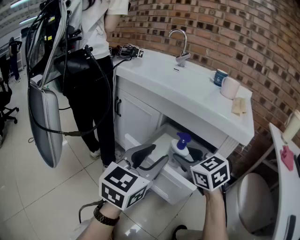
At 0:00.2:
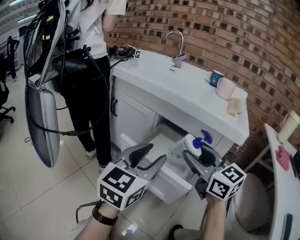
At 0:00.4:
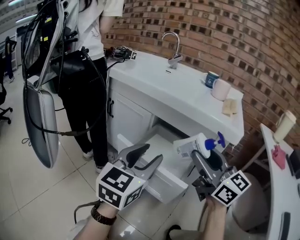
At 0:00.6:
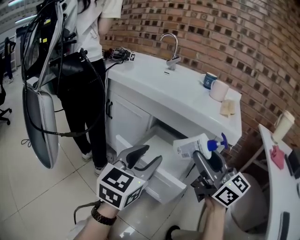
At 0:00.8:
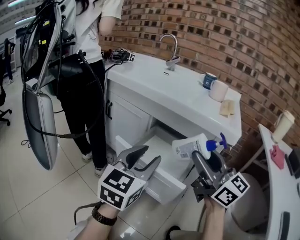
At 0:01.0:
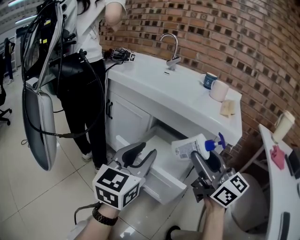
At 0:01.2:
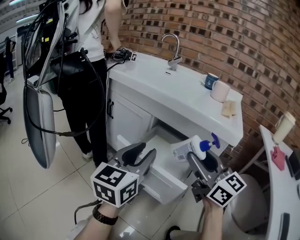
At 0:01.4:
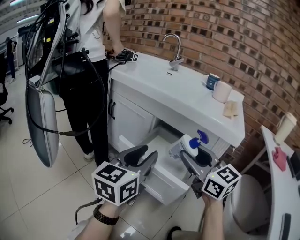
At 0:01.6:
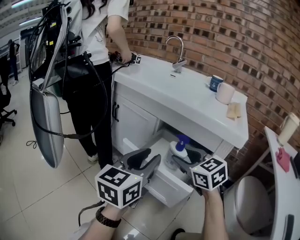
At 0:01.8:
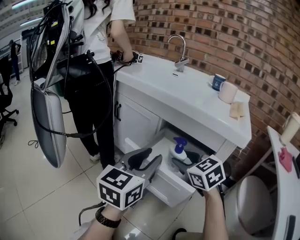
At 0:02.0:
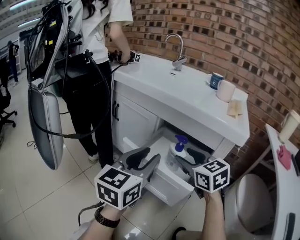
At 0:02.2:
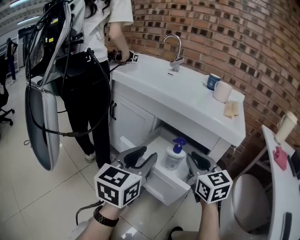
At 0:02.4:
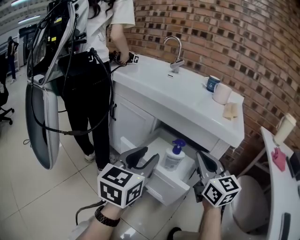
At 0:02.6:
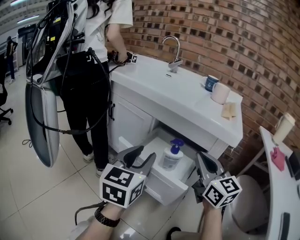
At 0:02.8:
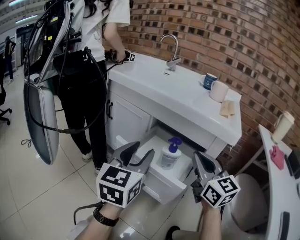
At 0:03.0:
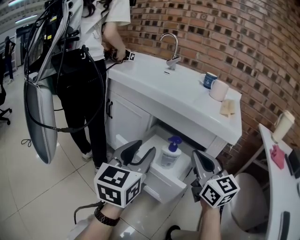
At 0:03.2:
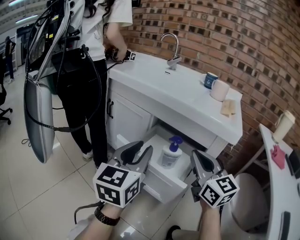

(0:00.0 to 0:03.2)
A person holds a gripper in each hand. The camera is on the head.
0:00.0 - 0:01.6: The right gripper goes upward and returns, approximately 10 cm each way.
0:01.6 - 0:03.2: The right gripper moves to the right and upward, roughly 10 cm, turns by roughly 30 degrees, and closes up.

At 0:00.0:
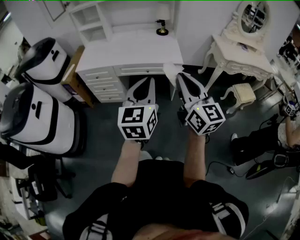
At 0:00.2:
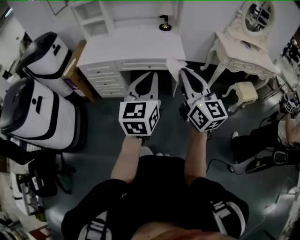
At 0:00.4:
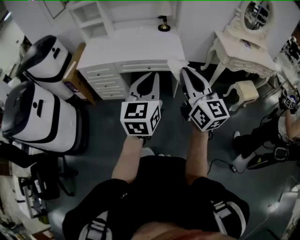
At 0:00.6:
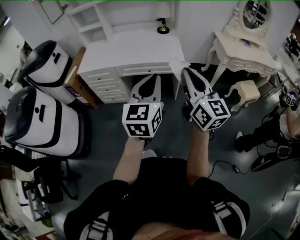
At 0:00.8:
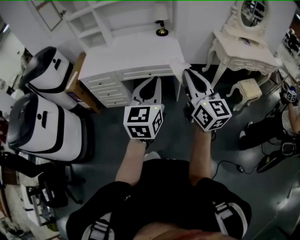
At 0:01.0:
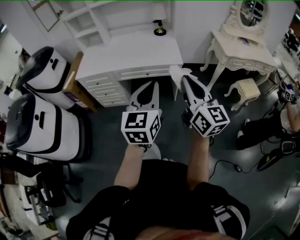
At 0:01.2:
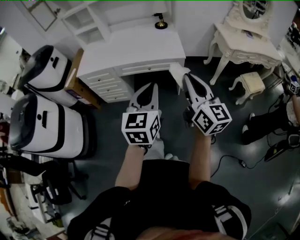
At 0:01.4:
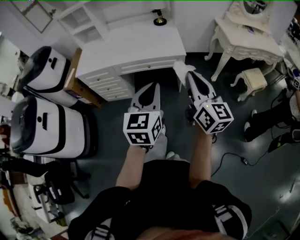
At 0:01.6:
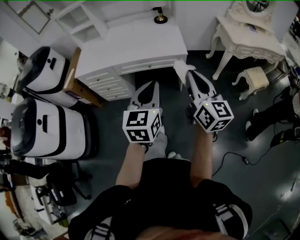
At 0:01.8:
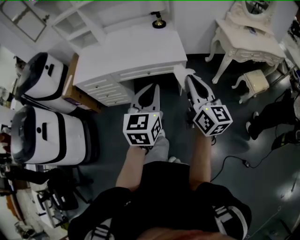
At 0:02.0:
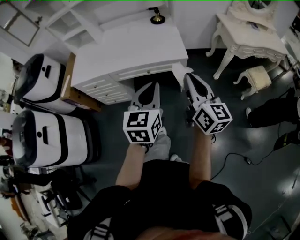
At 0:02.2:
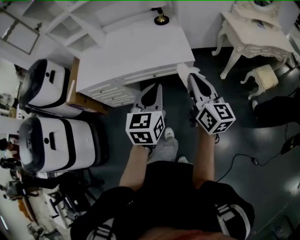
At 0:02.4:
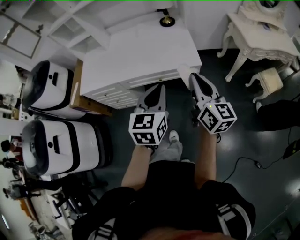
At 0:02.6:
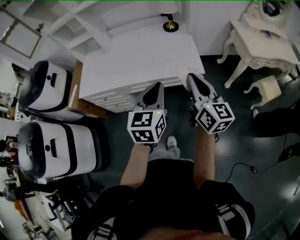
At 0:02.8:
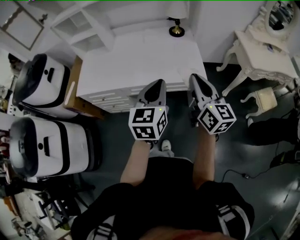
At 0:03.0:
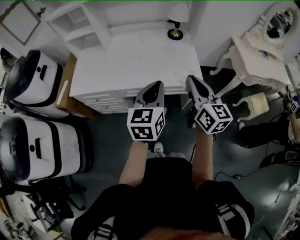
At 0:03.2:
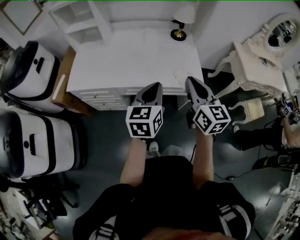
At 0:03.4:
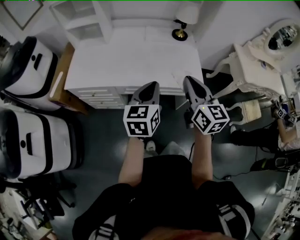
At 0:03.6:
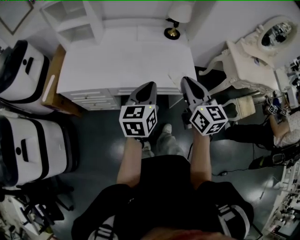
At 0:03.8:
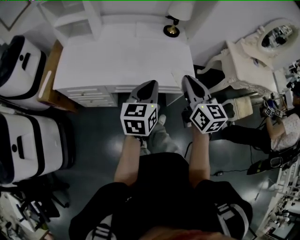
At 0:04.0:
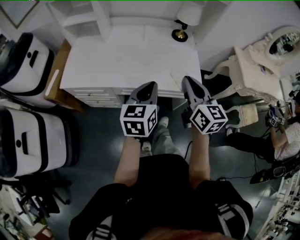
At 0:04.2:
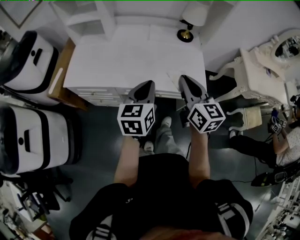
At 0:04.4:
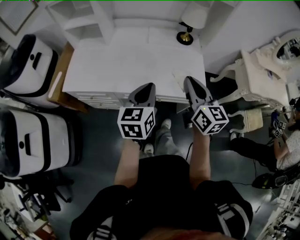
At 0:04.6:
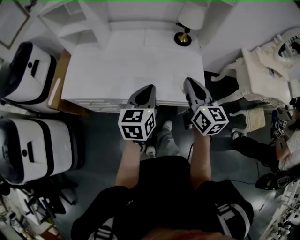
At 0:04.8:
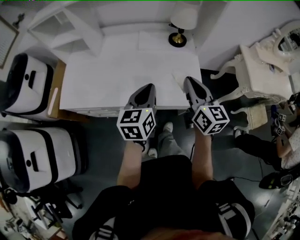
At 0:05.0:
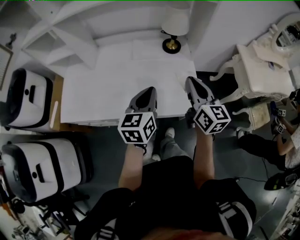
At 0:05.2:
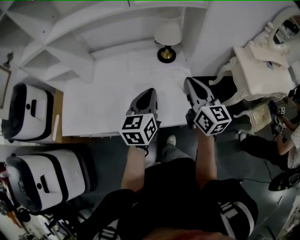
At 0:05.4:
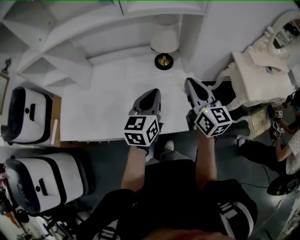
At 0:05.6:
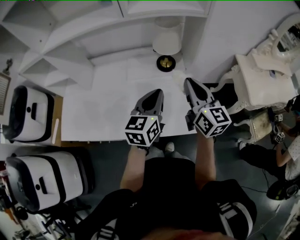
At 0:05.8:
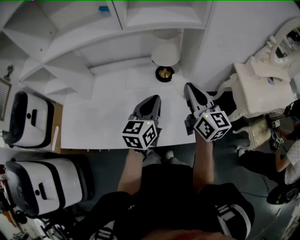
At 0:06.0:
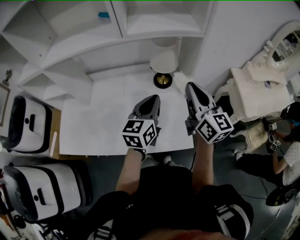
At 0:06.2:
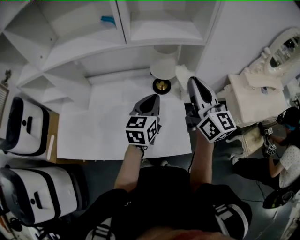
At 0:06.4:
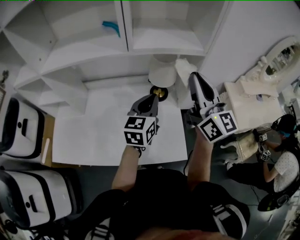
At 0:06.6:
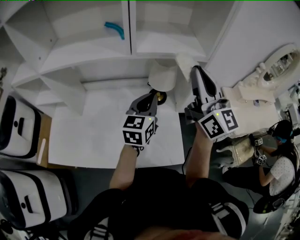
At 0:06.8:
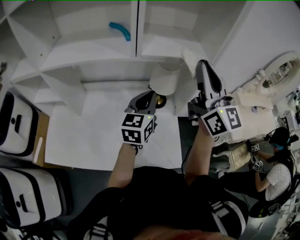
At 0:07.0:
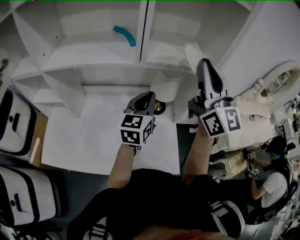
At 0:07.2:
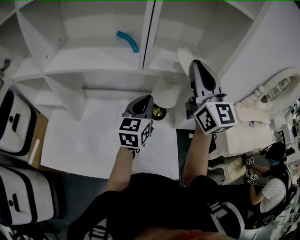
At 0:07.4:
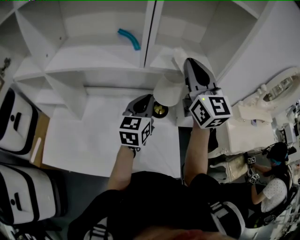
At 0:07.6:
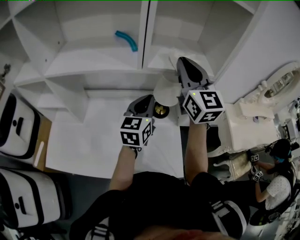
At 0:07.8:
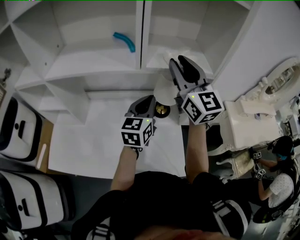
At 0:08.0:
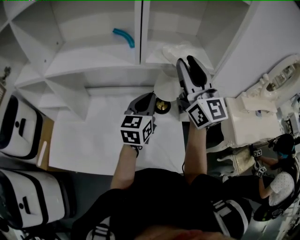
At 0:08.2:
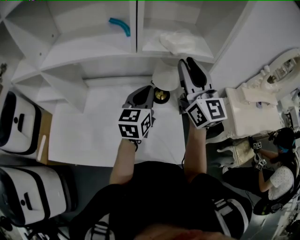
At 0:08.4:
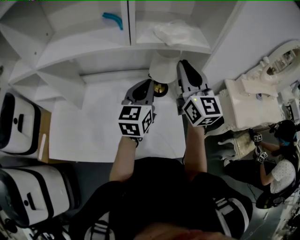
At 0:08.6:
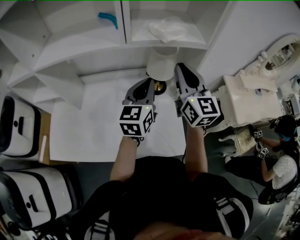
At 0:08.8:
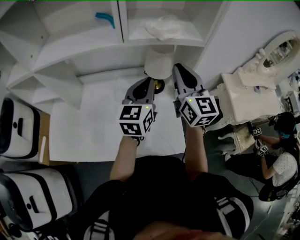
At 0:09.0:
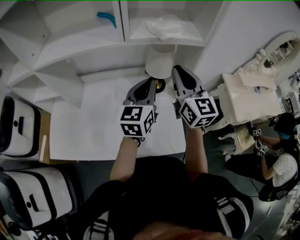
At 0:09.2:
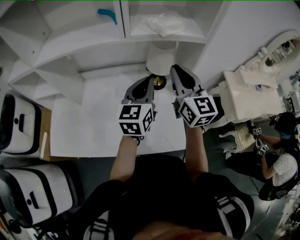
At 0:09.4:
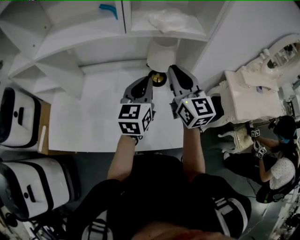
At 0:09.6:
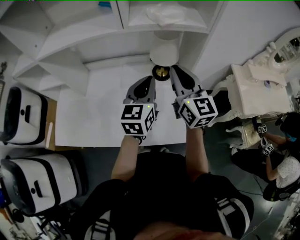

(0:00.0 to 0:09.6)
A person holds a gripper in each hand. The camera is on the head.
0:00.0 - 0:01.6: The left gripper shifts roughly 10 cm forward and downward; the right gripper goes some 15 cm forward, to the right and downward.
0:01.6 - 0:03.2: Both grippers travel together forward and to the left, approximately 35 cm.
0:03.2 - 0:04.8: The two grippers go approximately 15 cm forward.
0:04.8 - 0:06.4: The right gripper goes about 35 cm forward, upward and to the right, and turns by about 30 degrees; the left gripper is displaced forward and to the right by roughly 30 cm.
0:06.4 - 0:08.0: The left gripper heads forward, covering roughly 5 cm. Meanwhile the right gripper shifts some 10 cm forward and to the left, and opens its fingers.
0:08.0 - 0:09.6: The right gripper moves downward and backward, about 15 cm, swivels about 20 degrees, and closes its fingers; the left gripper goes about 5 cm backward.

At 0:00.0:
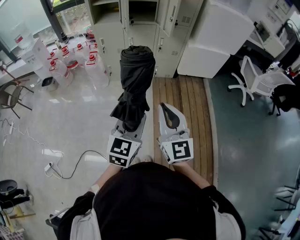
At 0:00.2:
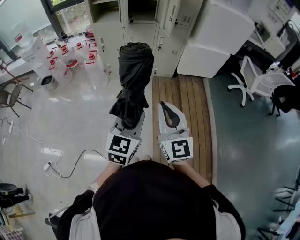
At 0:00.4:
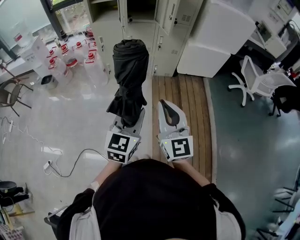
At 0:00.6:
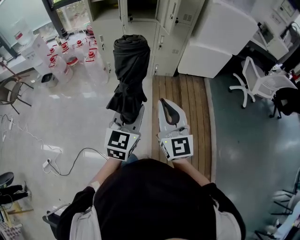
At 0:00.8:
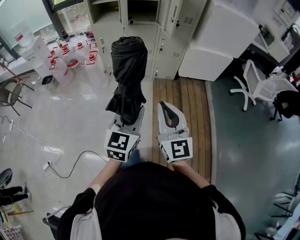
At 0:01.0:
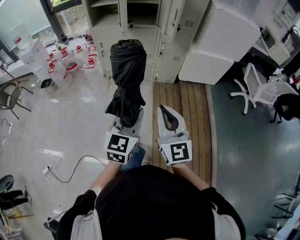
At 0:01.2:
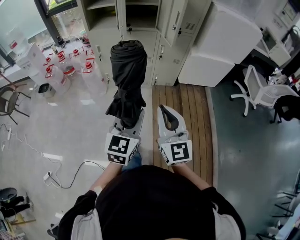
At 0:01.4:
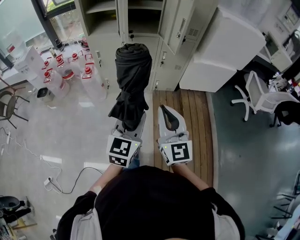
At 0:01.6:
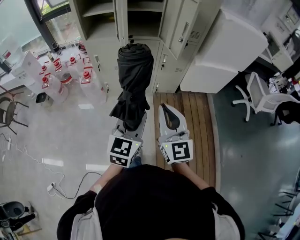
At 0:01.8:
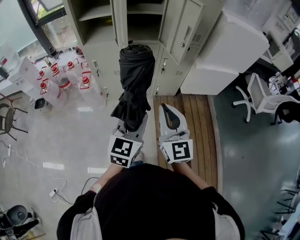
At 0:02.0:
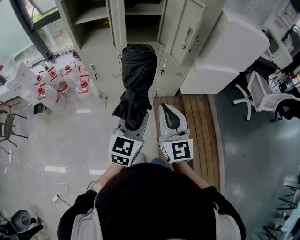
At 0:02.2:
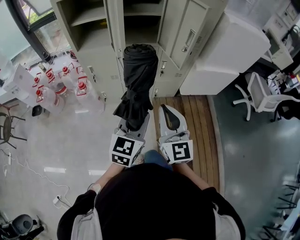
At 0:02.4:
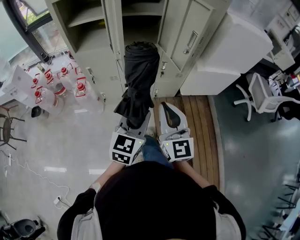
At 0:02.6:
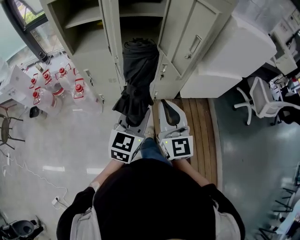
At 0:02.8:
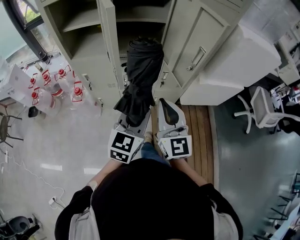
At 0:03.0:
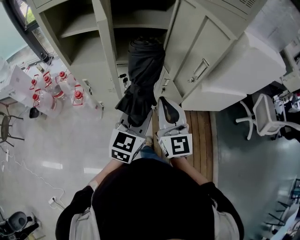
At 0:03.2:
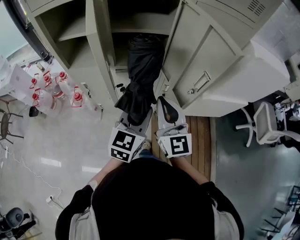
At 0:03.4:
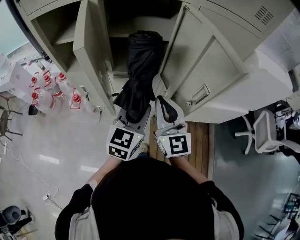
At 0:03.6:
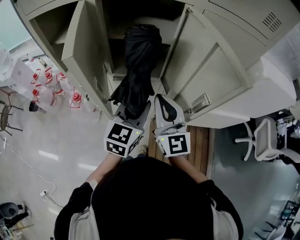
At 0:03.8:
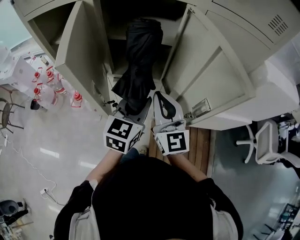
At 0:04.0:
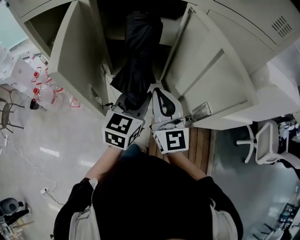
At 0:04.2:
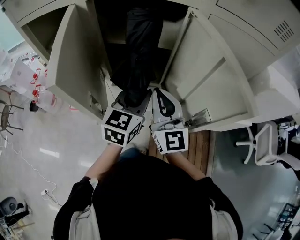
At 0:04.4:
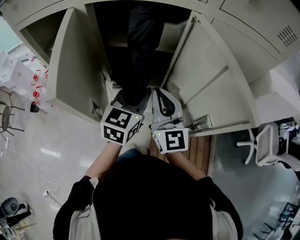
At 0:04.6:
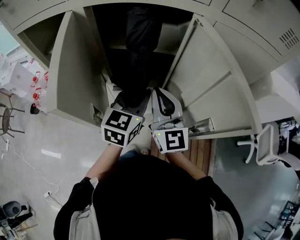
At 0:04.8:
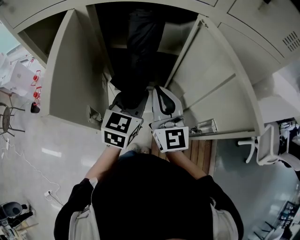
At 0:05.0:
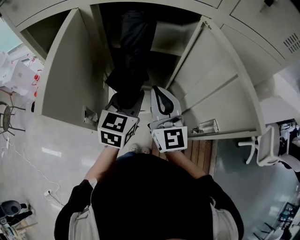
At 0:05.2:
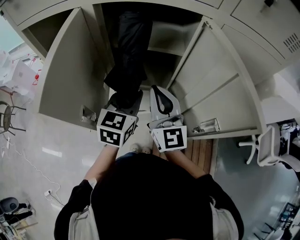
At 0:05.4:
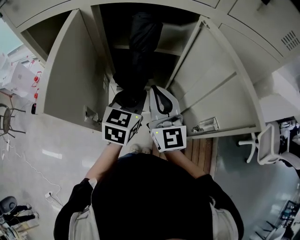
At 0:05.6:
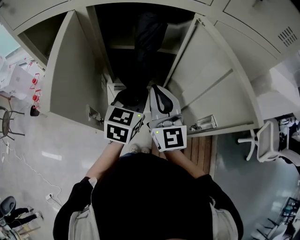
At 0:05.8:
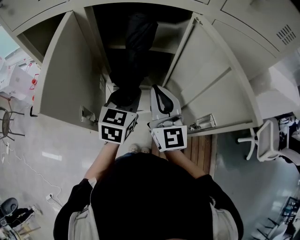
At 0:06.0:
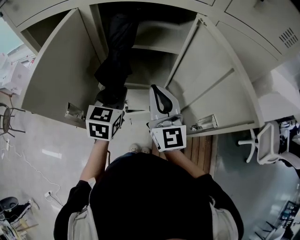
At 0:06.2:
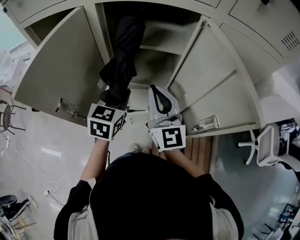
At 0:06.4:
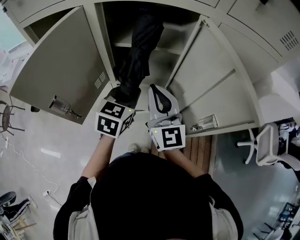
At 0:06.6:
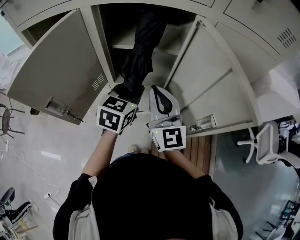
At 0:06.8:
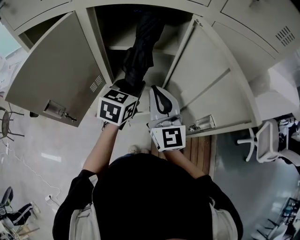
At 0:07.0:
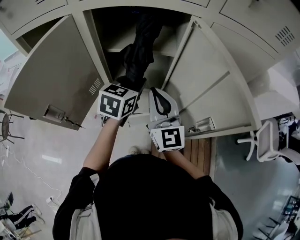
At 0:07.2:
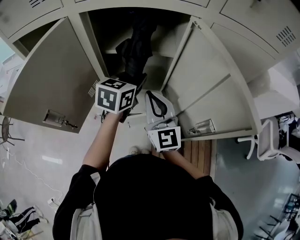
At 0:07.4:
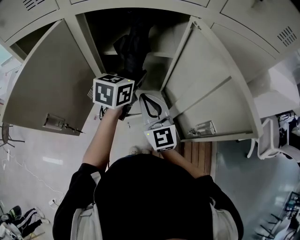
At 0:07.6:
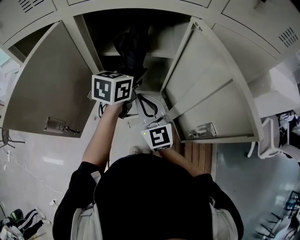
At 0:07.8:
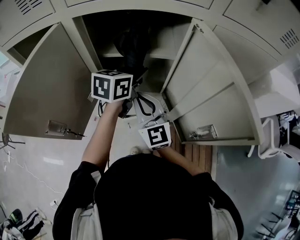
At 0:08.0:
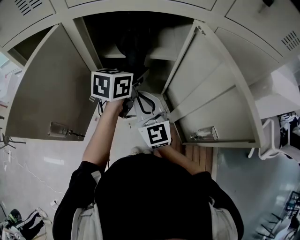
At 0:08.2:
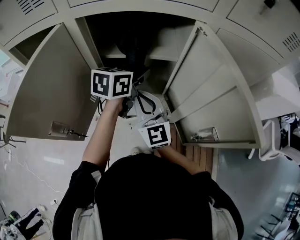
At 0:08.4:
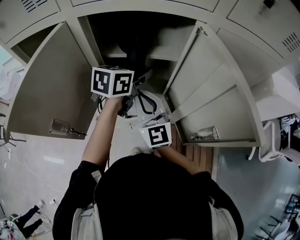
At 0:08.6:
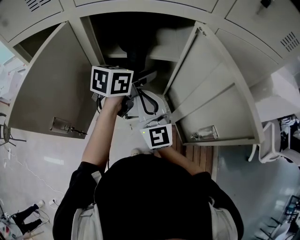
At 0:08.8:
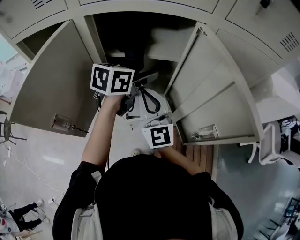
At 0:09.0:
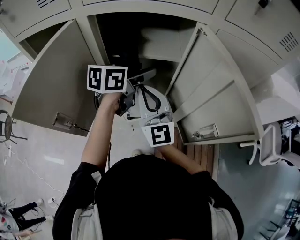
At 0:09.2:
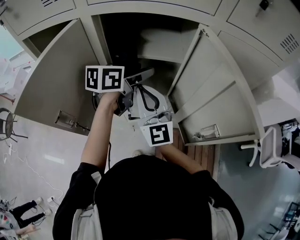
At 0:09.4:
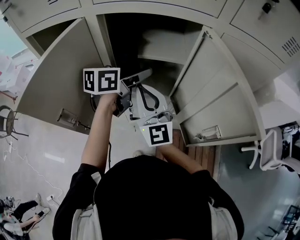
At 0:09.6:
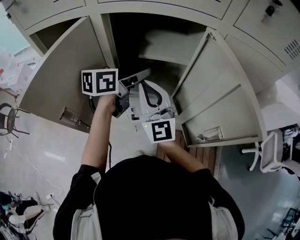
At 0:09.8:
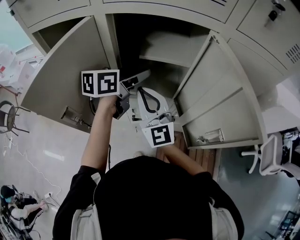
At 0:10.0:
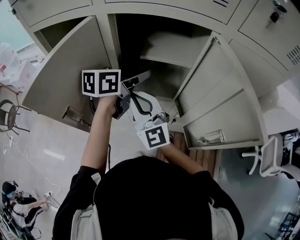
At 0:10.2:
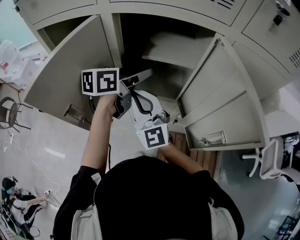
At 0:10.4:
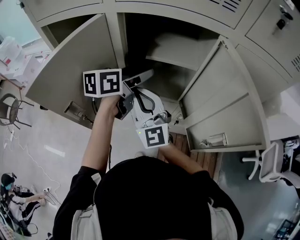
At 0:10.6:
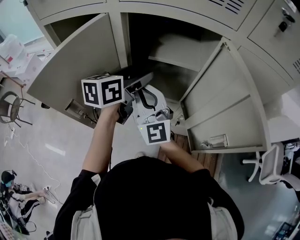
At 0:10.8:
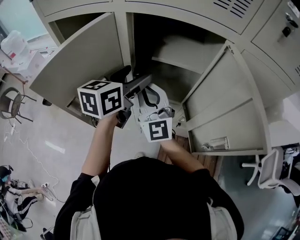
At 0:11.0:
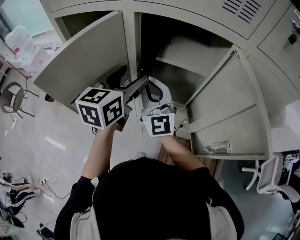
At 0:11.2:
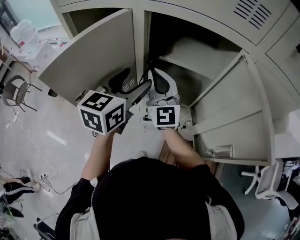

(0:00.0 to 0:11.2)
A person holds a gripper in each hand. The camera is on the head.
0:00.0 - 0:01.6: The grippers both shift forward by approximately 25 cm.
0:01.6 - 0:03.2: Both grippers move forward, roughly 35 cm.
0:03.2 - 0:04.8: The two grippers go roughly 15 cm forward.
0:06.4 - 0:08.0: The left gripper shifts approximately 10 cm forward, and swivels about 20 degrees; the right gripper heads downward, covering approximately 5 cm.
0:08.0 - 0:09.6: The left gripper travels to the left by about 5 cm, and opens its fingers, while the right gripper travels upward by some 5 cm.
0:09.6 - 0:11.2: The right gripper shifts some 5 cm to the left. Meanwhile the left gripper goes approximately 10 cm to the left and backward, and turns by approximately 40 degrees.
